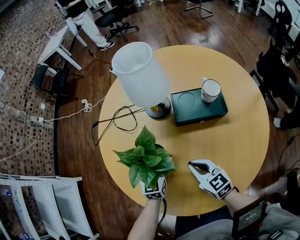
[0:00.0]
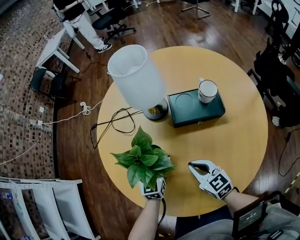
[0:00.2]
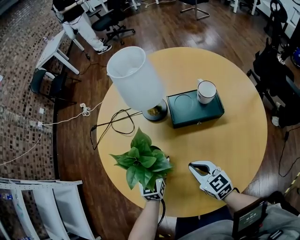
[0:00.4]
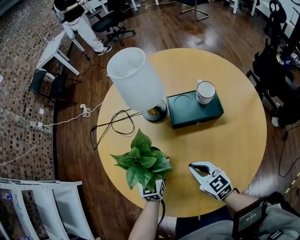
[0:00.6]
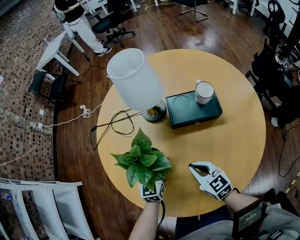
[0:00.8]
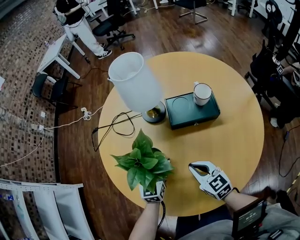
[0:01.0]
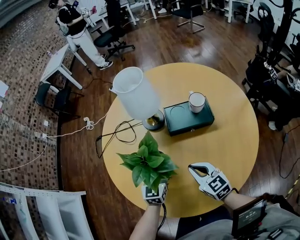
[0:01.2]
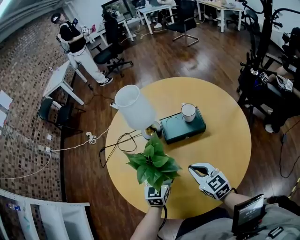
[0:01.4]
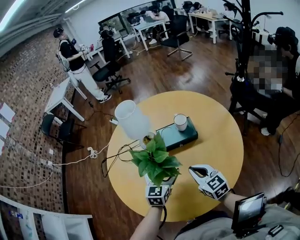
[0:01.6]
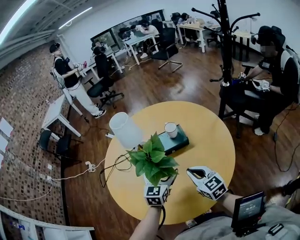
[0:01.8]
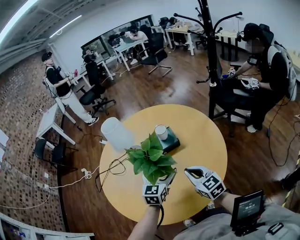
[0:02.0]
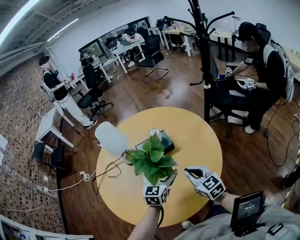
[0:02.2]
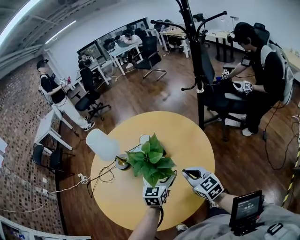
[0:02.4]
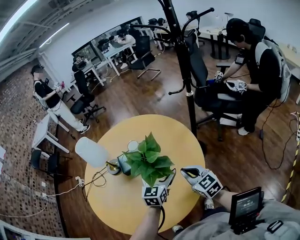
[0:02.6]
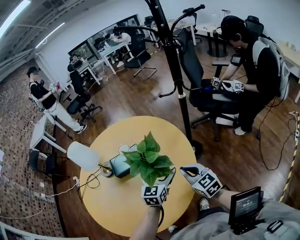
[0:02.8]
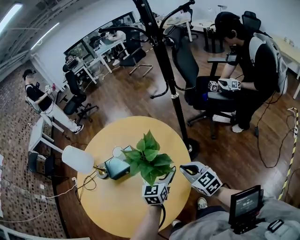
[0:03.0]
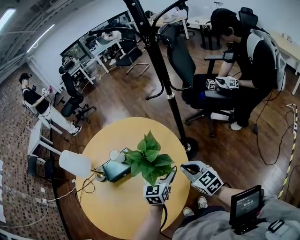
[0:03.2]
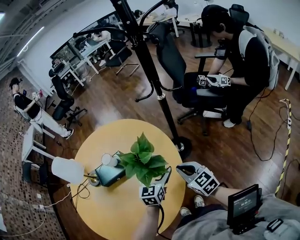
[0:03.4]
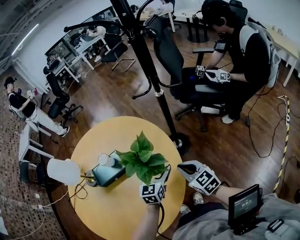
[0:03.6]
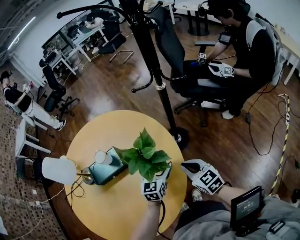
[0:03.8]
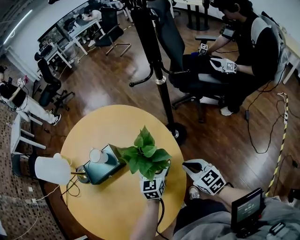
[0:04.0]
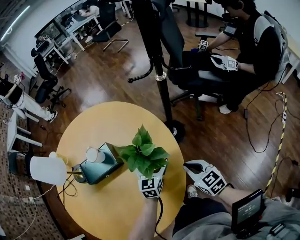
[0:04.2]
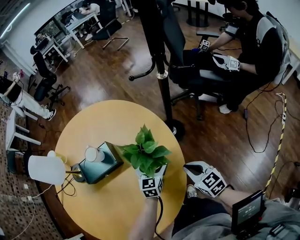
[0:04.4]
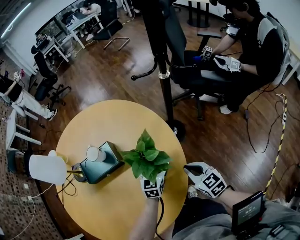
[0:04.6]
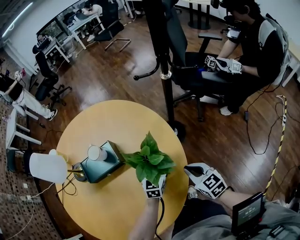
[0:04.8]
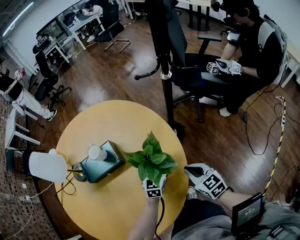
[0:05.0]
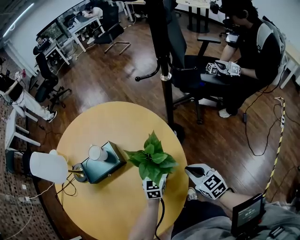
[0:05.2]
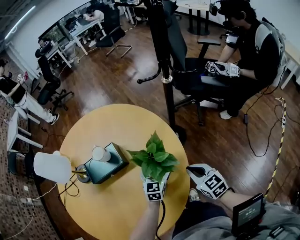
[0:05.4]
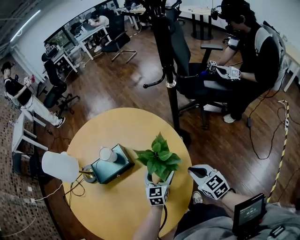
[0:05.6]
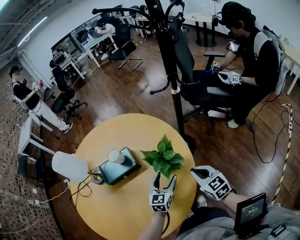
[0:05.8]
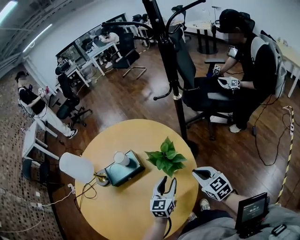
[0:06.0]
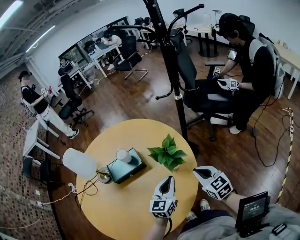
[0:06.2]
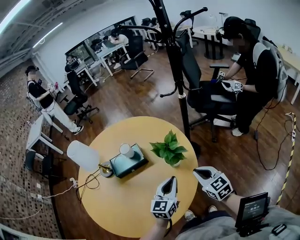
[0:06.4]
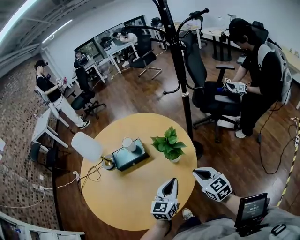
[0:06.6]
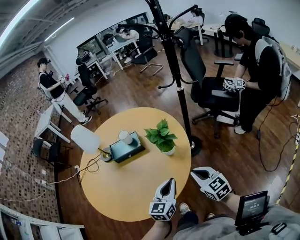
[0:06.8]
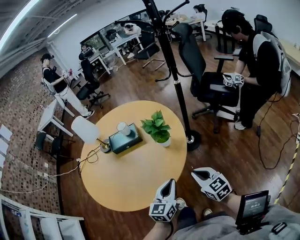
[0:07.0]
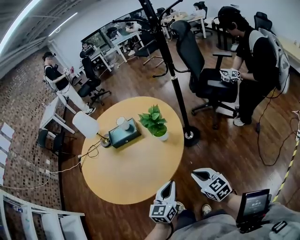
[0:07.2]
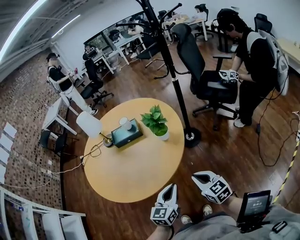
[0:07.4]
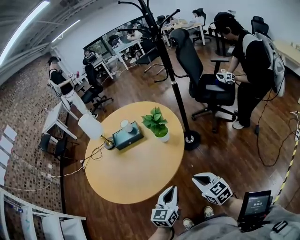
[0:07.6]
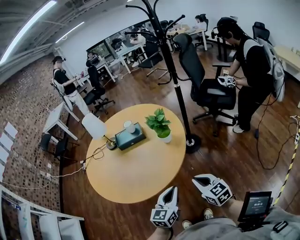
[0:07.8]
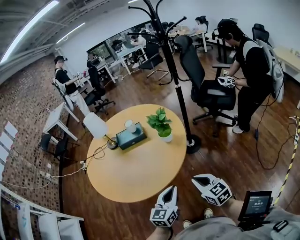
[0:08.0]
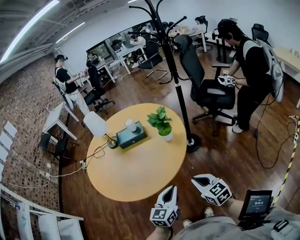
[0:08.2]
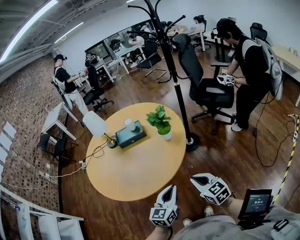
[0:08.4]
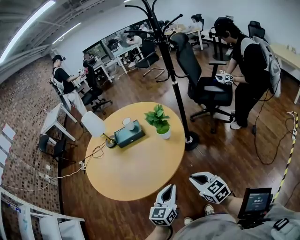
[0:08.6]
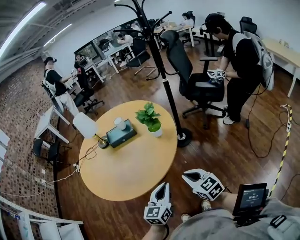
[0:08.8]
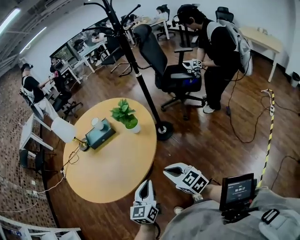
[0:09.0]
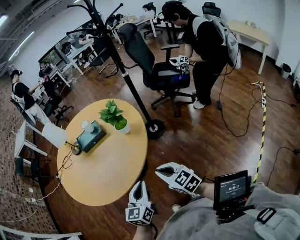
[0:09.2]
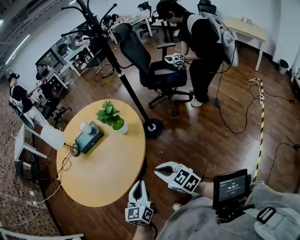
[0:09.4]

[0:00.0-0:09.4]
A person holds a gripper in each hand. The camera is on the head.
0.0 to 1.6 s: The two grippers go some 15 cm upward and to the right.
1.6 to 3.2 s: Both grippers move to the right, approximately 30 cm.
3.2 to 4.8 s: The left gripper moves downward and forward, roughly 20 cm. Meanwhile the right gripper travels downward by some 10 cm.
4.8 to 6.2 s: The right gripper shifts some 10 cm upward and backward; the left gripper shifts about 20 cm upward and backward, and closes its fingers.
6.2 to 7.8 s: The grippers both shift backward by approximately 30 cm.
7.8 to 9.4 s: The grippers move only a little.

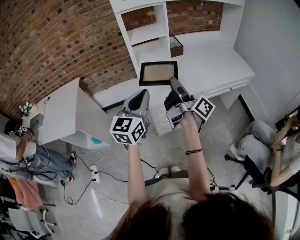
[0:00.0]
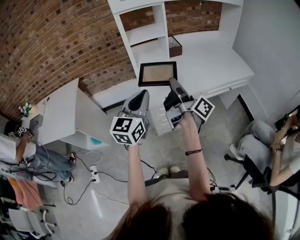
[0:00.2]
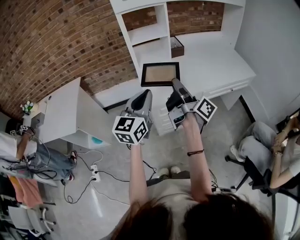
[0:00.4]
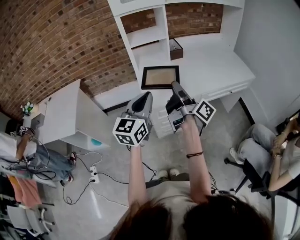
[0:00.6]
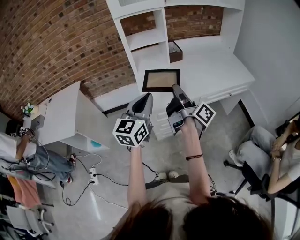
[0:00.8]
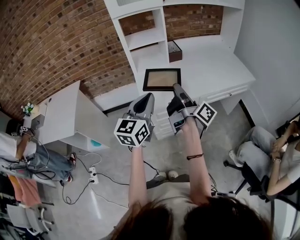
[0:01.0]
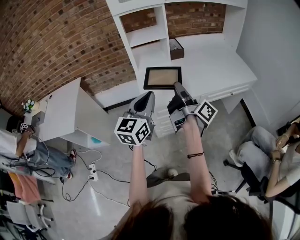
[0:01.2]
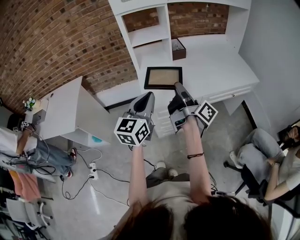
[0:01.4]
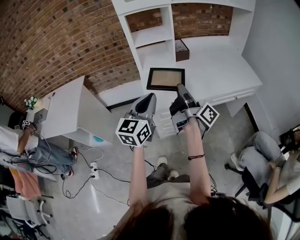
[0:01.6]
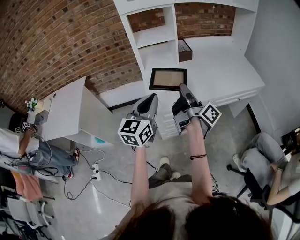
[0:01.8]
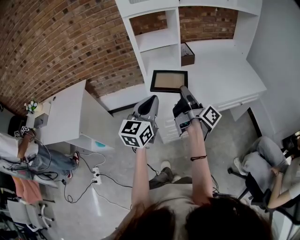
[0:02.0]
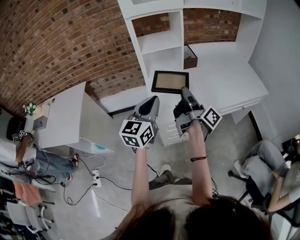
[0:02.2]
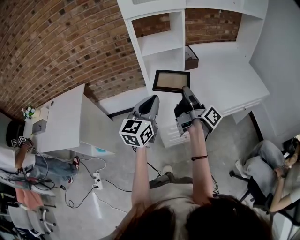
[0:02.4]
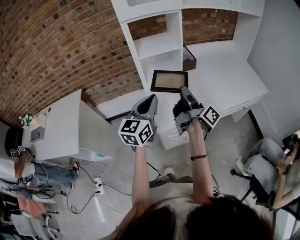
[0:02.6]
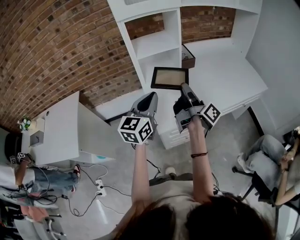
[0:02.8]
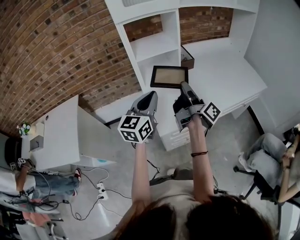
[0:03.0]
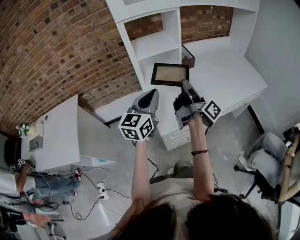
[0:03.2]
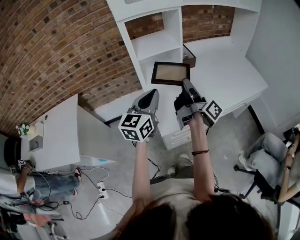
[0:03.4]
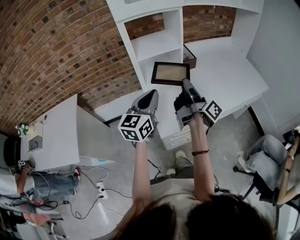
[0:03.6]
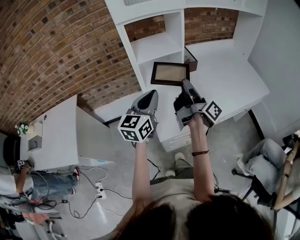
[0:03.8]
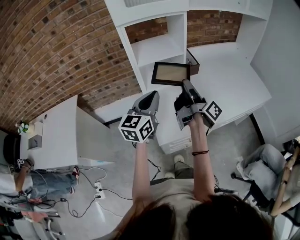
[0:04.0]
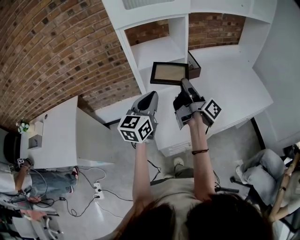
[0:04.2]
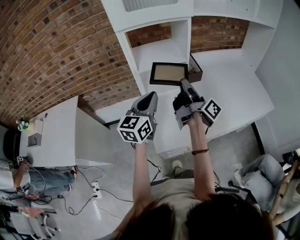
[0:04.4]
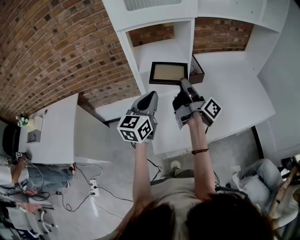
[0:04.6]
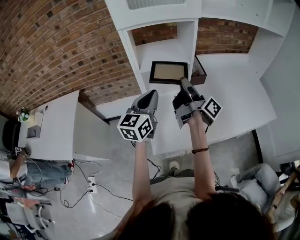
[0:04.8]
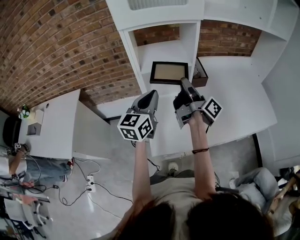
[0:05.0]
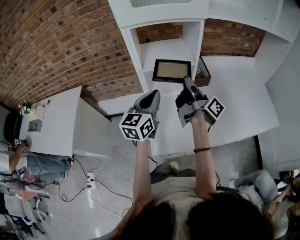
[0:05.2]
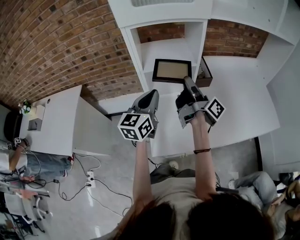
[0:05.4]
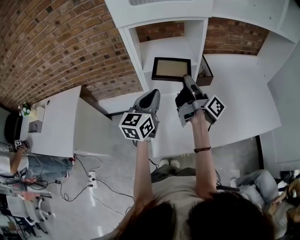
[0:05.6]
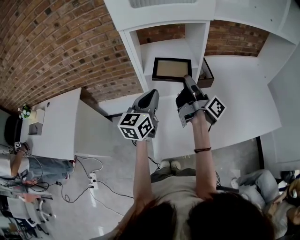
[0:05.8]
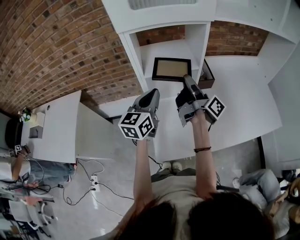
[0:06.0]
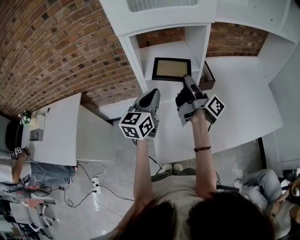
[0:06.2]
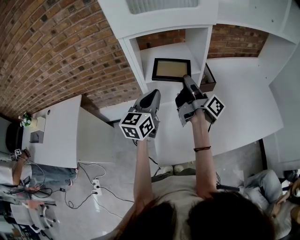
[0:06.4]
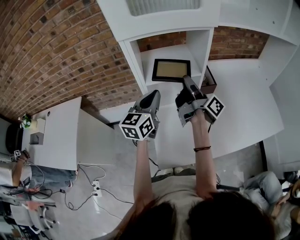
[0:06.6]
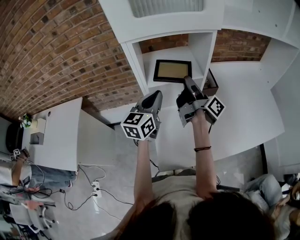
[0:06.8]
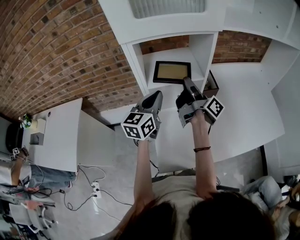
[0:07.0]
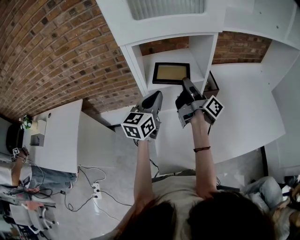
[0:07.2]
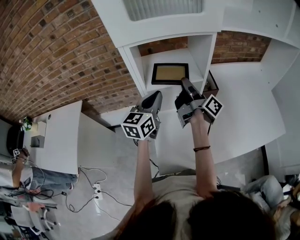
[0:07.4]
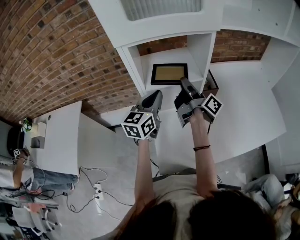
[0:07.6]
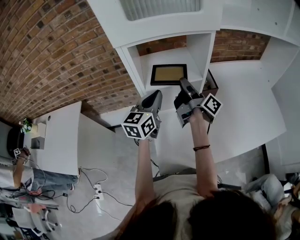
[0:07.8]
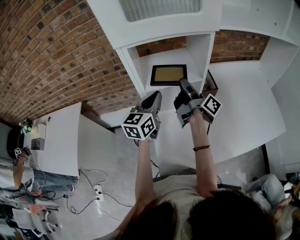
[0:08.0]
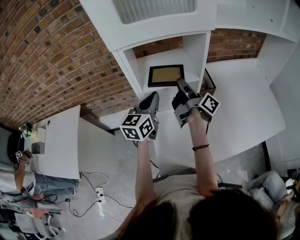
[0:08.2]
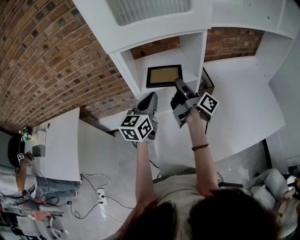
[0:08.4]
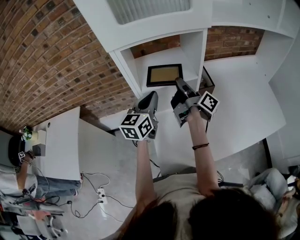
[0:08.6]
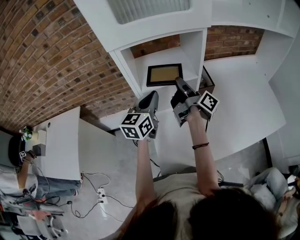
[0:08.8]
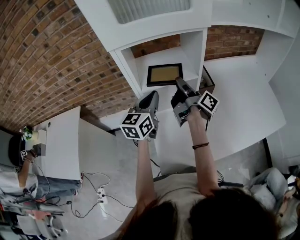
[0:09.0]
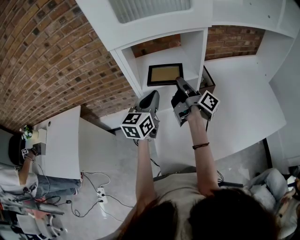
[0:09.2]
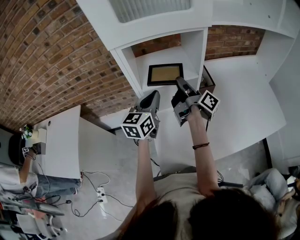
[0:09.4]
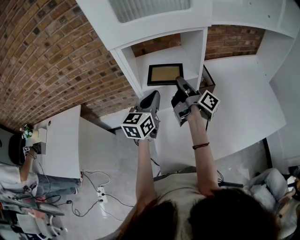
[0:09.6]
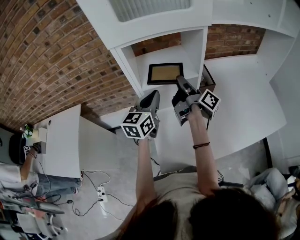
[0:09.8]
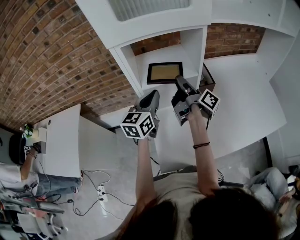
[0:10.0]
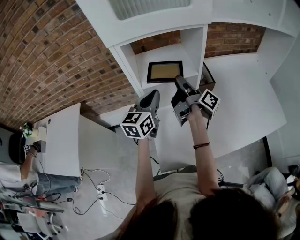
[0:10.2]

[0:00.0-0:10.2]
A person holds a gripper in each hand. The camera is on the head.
0.0 to 1.4 s: The left gripper ends up roughly 5 cm from where it was.
1.4 to 3.0 s: The left gripper moves some 20 cm.
3.0 to 4.4 s: The left gripper ends up some 10 cm from where it was.
4.4 to 5.8 s: The left gripper changes place by roughly 5 cm.
5.8 to 7.2 s: The left gripper moves approximately 5 cm.

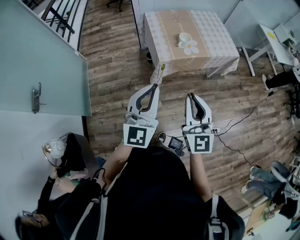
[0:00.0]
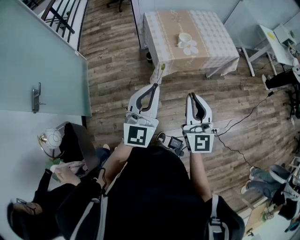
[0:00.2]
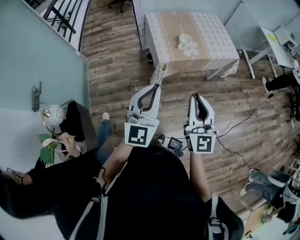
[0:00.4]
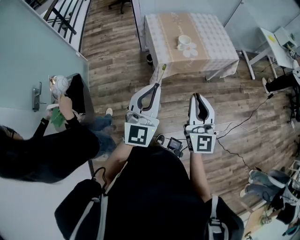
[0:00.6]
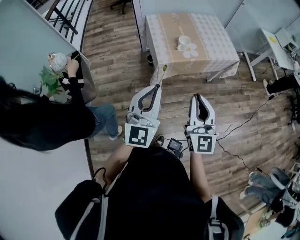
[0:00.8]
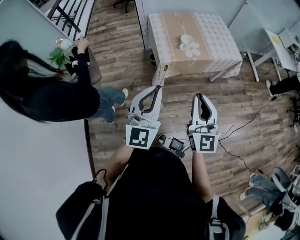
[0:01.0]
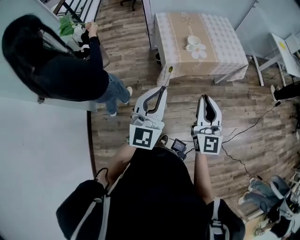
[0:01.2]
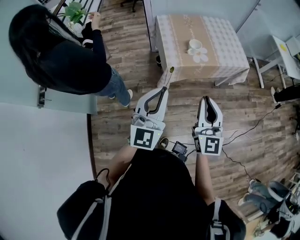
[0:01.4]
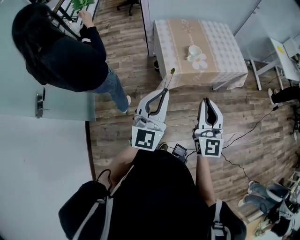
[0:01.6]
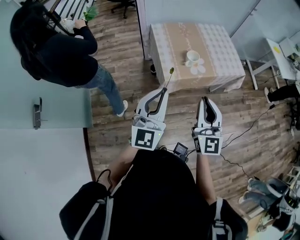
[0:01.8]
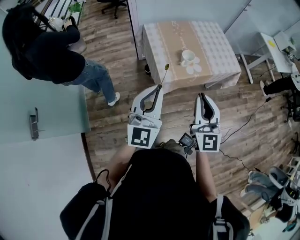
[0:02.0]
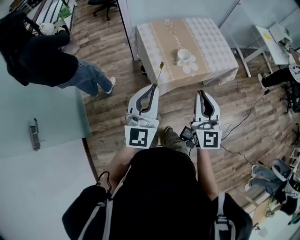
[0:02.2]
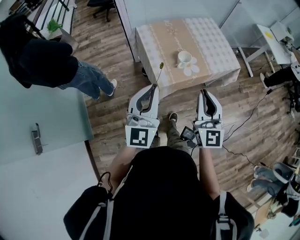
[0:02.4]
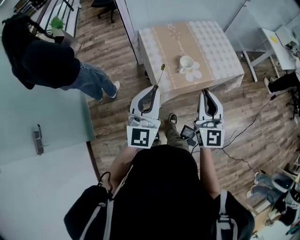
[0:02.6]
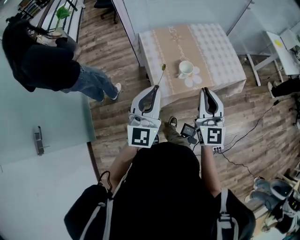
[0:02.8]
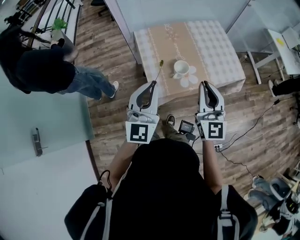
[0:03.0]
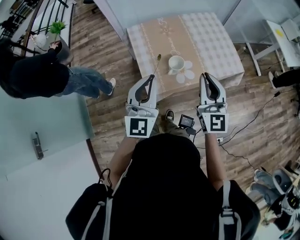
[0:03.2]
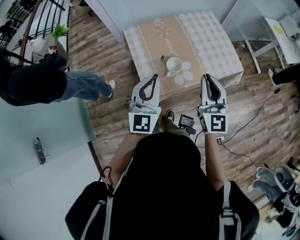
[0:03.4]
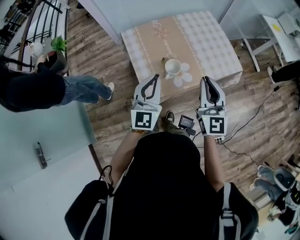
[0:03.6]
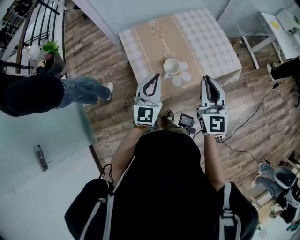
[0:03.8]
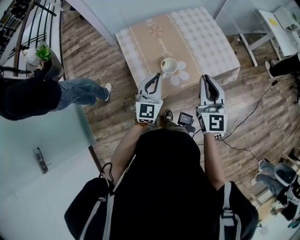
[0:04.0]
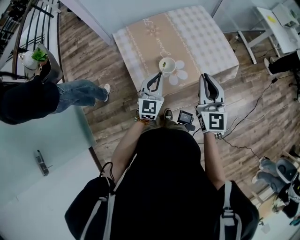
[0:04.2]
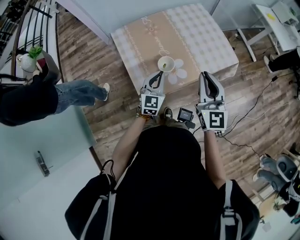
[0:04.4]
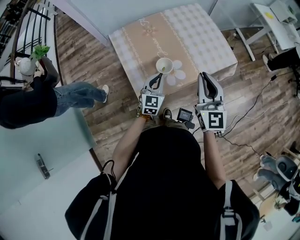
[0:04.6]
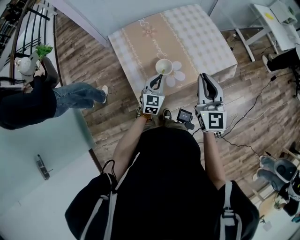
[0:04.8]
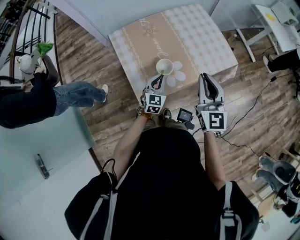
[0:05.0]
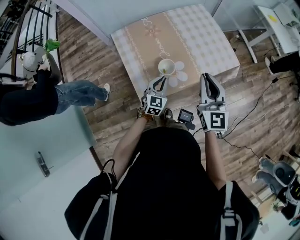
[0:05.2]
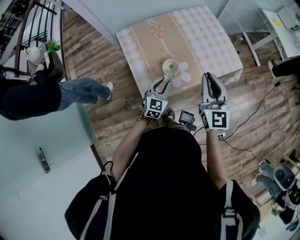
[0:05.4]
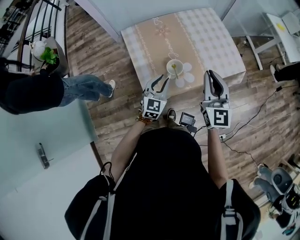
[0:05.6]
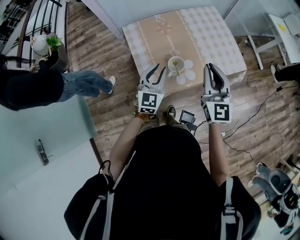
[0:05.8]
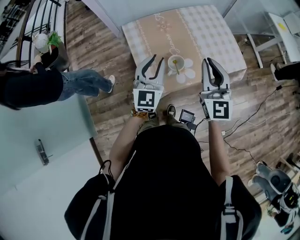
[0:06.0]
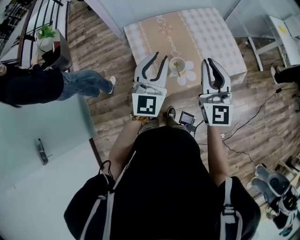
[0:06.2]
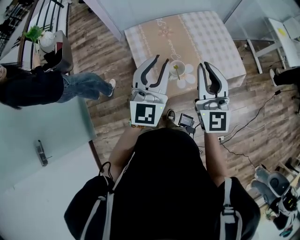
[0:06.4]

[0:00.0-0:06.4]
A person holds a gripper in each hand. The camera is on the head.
0.0 to 1.6 s: Both grippers move forward, some 10 cm.
1.6 to 3.2 s: The grippers both shift forward by about 30 cm.
3.2 to 4.8 s: The left gripper is displaced downward and forward by roughly 30 cm, and turns by approximately 30 degrees; the right gripper travels forward and to the right by approximately 5 cm.
4.8 to 6.4 s: The right gripper heads upward and to the left, covering some 15 cm. The left gripper shifts approximately 30 cm upward, turns by roughly 30 degrees, and opens up.
